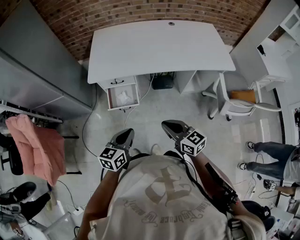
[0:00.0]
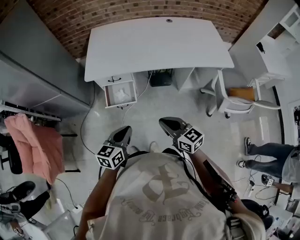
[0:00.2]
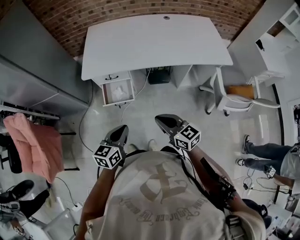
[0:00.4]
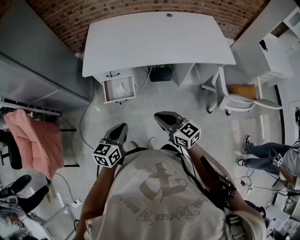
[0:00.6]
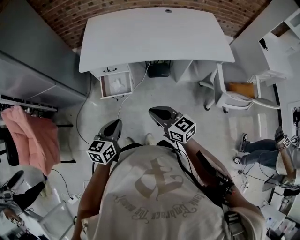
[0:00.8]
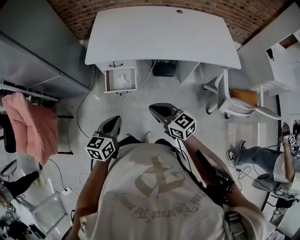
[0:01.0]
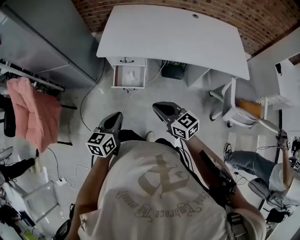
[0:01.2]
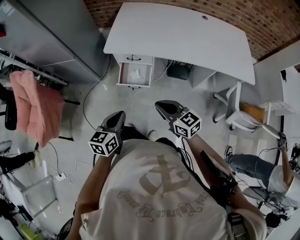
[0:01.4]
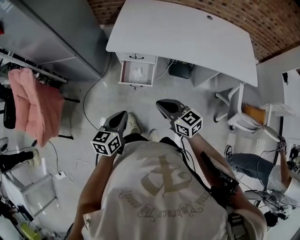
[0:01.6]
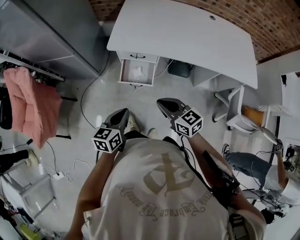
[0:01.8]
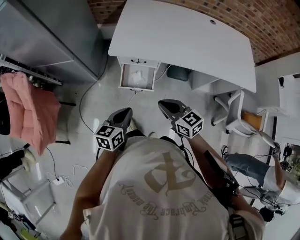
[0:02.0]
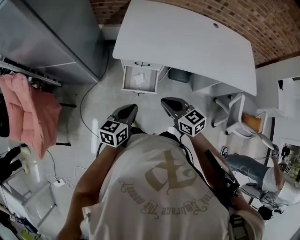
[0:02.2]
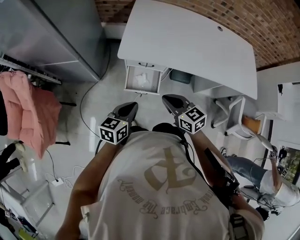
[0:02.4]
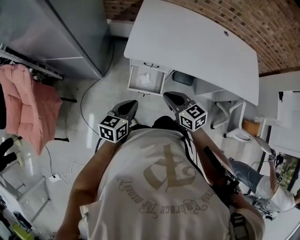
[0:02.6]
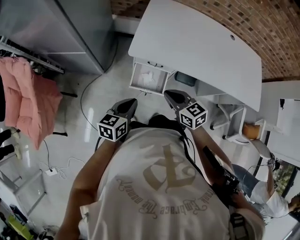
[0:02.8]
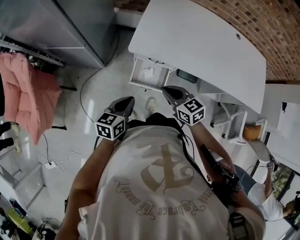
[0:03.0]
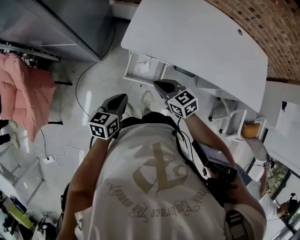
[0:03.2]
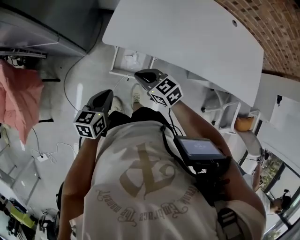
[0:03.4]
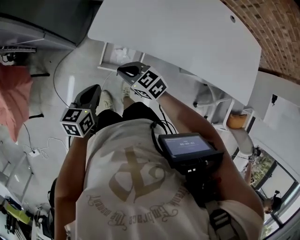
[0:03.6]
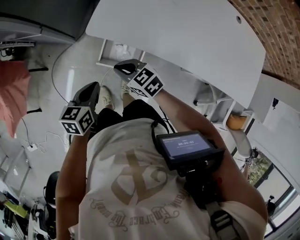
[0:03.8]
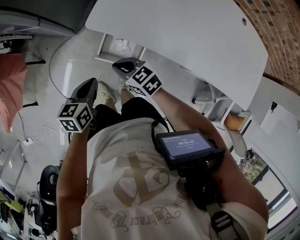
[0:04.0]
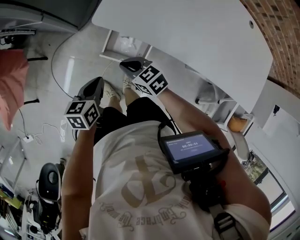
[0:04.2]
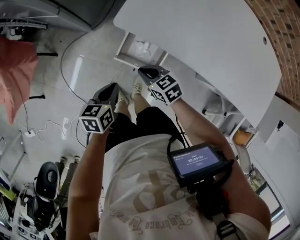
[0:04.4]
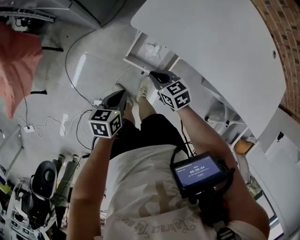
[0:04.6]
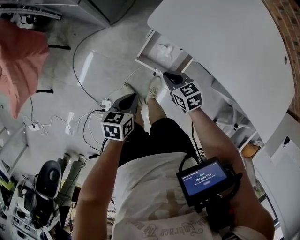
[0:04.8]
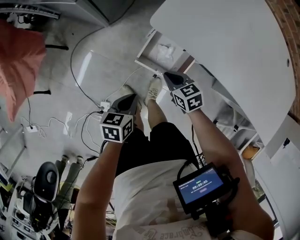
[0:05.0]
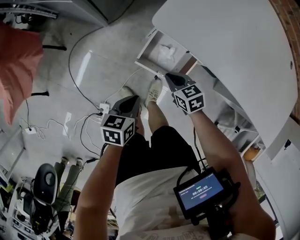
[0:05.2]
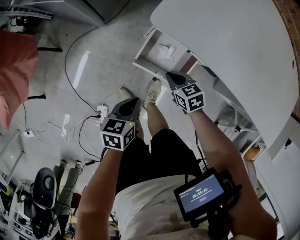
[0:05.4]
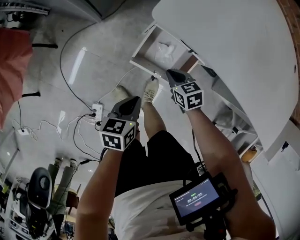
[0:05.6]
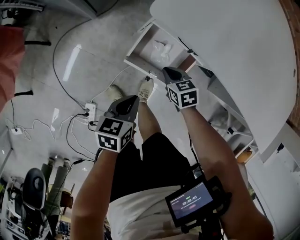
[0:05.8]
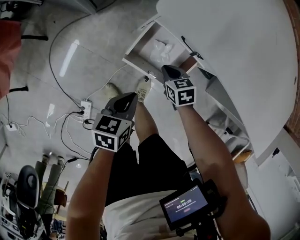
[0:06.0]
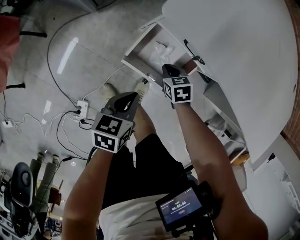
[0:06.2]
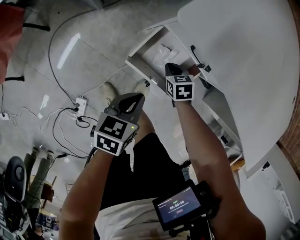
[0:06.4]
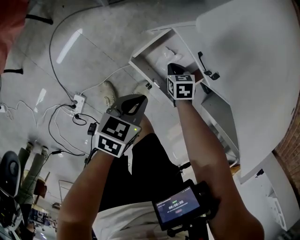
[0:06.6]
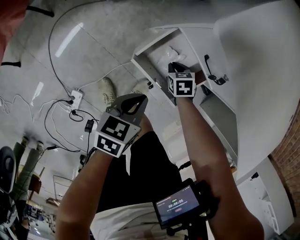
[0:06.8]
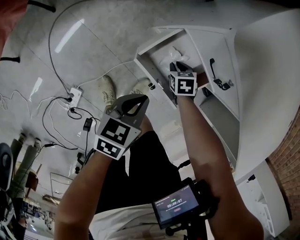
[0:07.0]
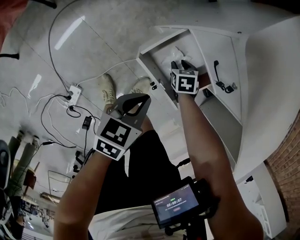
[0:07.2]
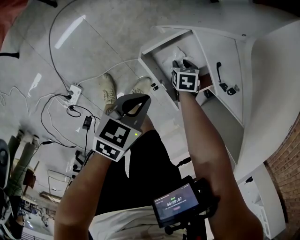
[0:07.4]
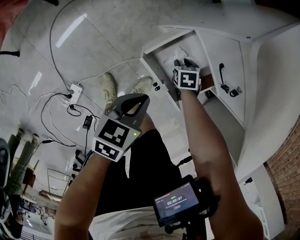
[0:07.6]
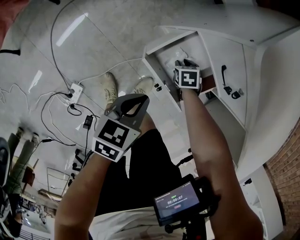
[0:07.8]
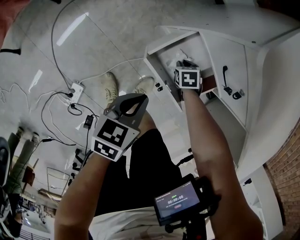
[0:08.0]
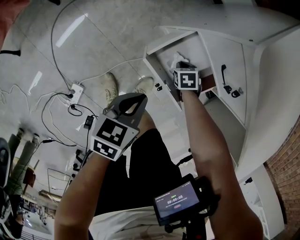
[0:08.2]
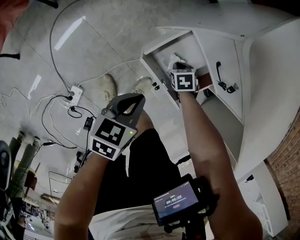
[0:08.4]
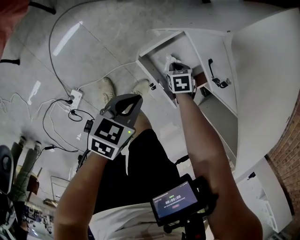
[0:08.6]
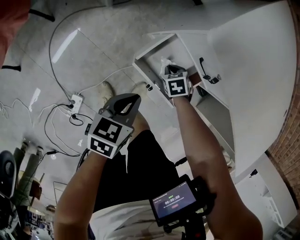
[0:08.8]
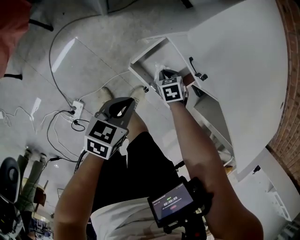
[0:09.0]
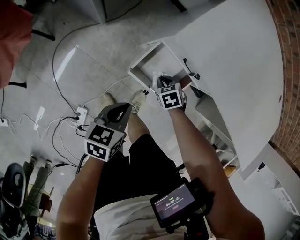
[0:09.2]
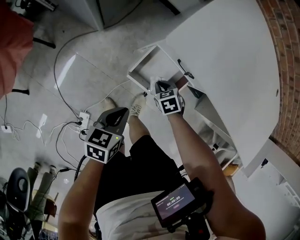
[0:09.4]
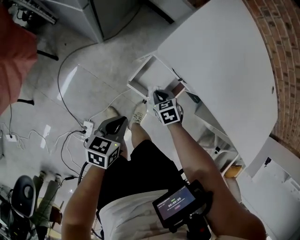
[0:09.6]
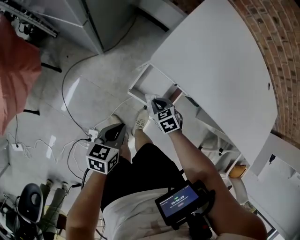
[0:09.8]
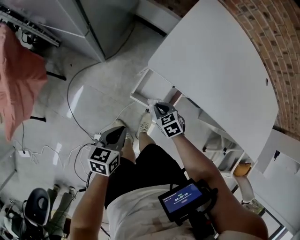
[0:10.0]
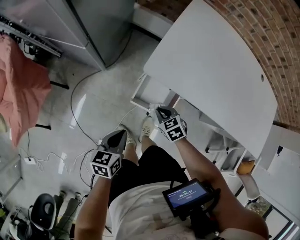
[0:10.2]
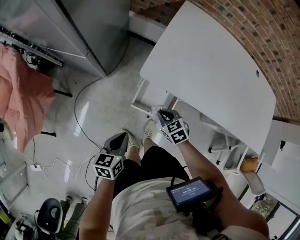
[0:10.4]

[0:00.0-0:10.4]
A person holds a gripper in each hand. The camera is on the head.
0:00.0 to 0:01.4: Both grippers travel together to the left, some 5 cm.
0:01.4 to 0:03.0: Both grippers move forward and to the left, roughly 25 cm.
0:03.0 to 0:04.4: Both grippers move downward, some 15 cm. The right gripper rotates roughly 20 degrees, while the left gripper turns by about 30 degrees.
0:04.4 to 0:06.0: Both grippers travel together downward, about 20 cm. The right gripper changes its angle by approximately 20 degrees.
0:06.0 to 0:07.4: The right gripper is displaced downward by roughly 15 cm, and opens up.
0:07.4 to 0:09.0: The right gripper shifts about 10 cm upward, and closes; the left gripper shifts some 5 cm upward.
0:09.0 to 0:10.4: The left gripper heads upward, covering approximately 15 cm. The right gripper moves upward, approximately 25 cm, and turns by roughly 20 degrees.

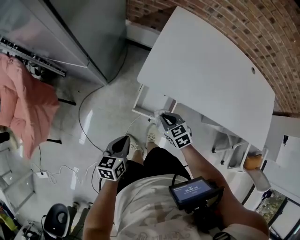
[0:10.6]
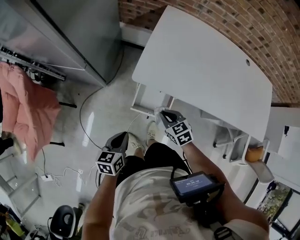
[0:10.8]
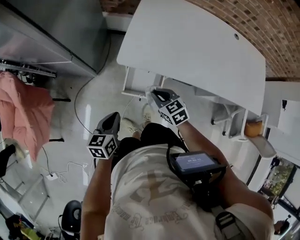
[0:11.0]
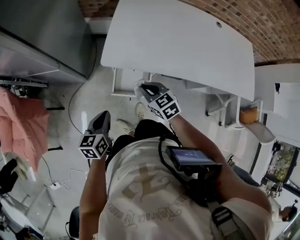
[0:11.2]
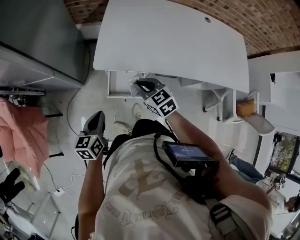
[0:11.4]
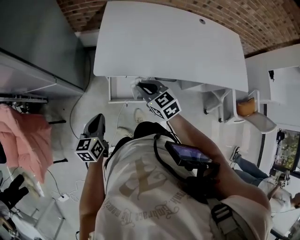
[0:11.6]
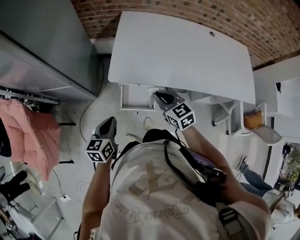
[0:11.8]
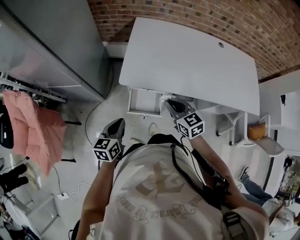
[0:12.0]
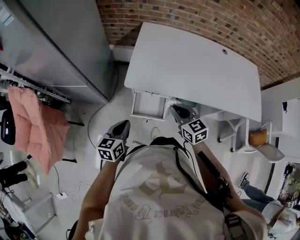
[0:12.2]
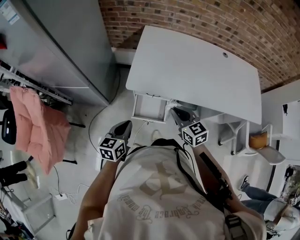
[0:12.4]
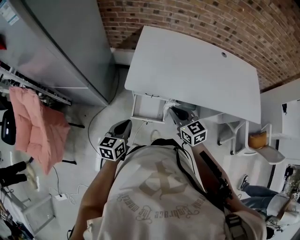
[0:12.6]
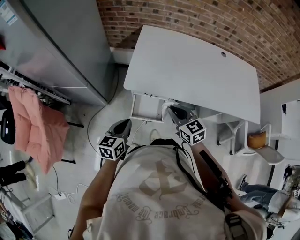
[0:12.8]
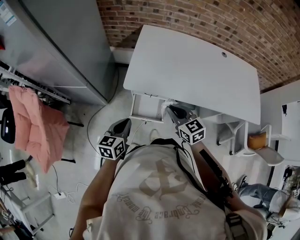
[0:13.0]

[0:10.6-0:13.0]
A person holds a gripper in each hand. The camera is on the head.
0:10.6 to 0:11.8: The right gripper goes some 20 cm upward and to the right, and changes its angle by about 30 degrees. Meanwhile the left gripper moves upward, some 10 cm.
0:11.8 to 0:13.0: The grippers make only small movements.

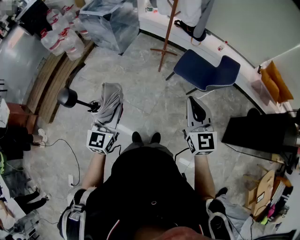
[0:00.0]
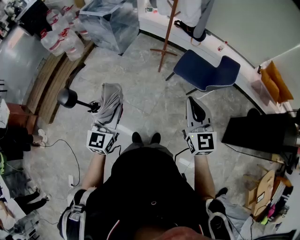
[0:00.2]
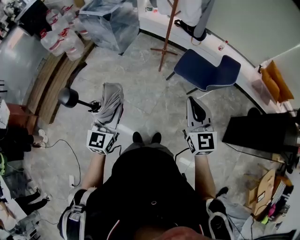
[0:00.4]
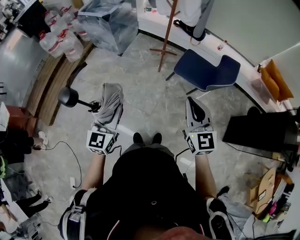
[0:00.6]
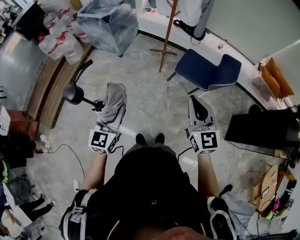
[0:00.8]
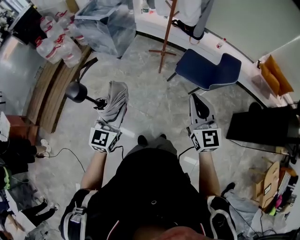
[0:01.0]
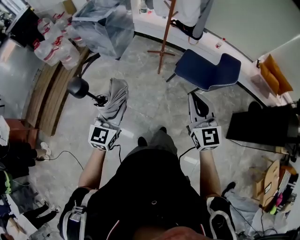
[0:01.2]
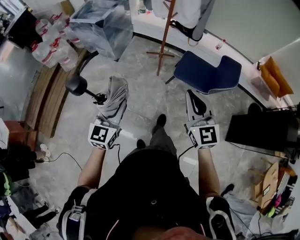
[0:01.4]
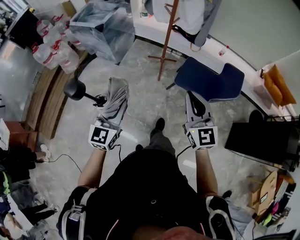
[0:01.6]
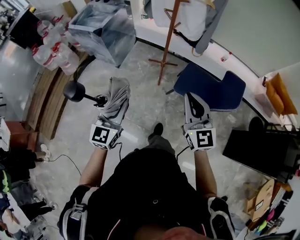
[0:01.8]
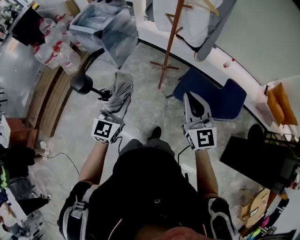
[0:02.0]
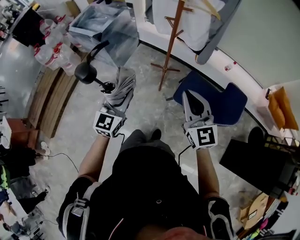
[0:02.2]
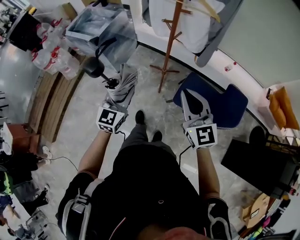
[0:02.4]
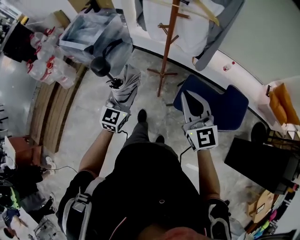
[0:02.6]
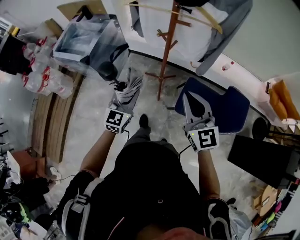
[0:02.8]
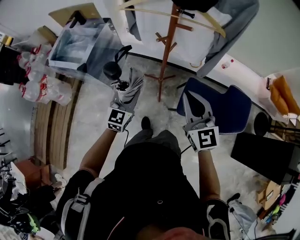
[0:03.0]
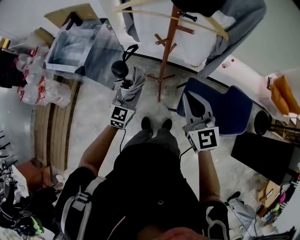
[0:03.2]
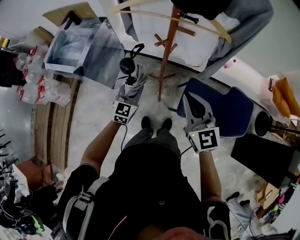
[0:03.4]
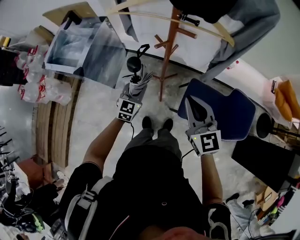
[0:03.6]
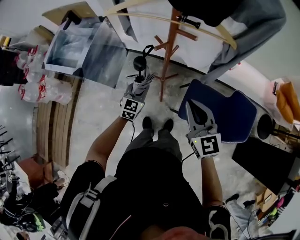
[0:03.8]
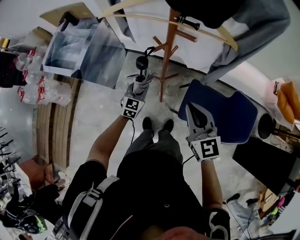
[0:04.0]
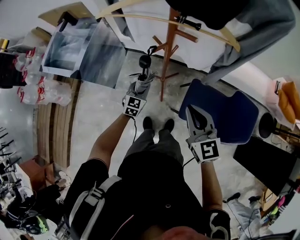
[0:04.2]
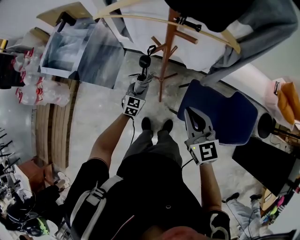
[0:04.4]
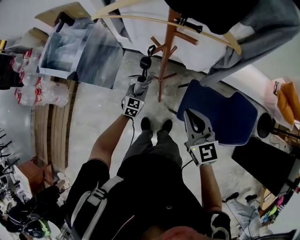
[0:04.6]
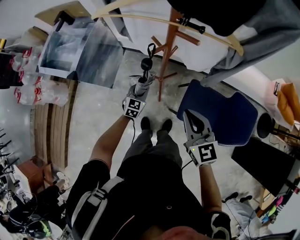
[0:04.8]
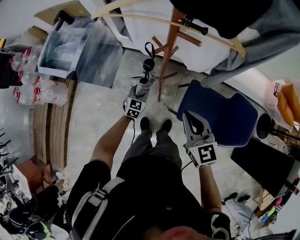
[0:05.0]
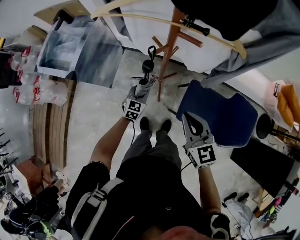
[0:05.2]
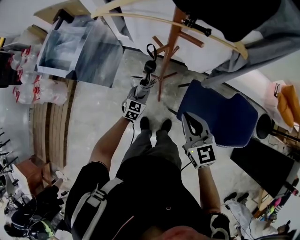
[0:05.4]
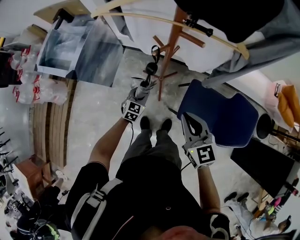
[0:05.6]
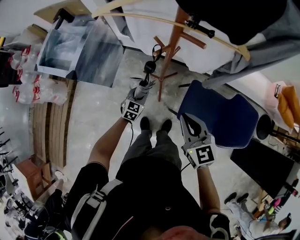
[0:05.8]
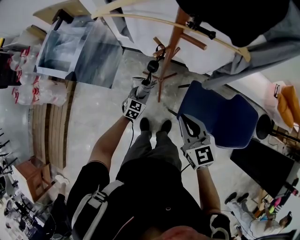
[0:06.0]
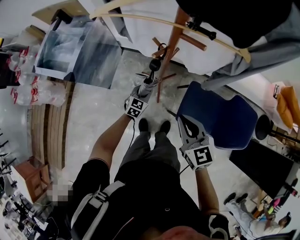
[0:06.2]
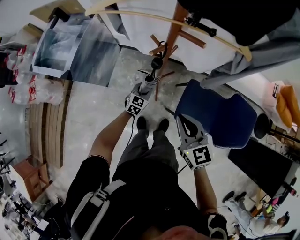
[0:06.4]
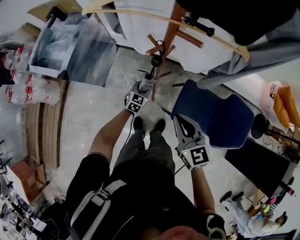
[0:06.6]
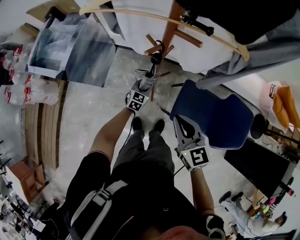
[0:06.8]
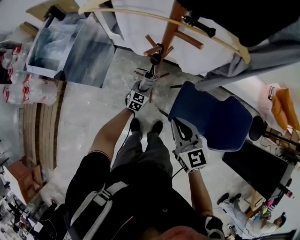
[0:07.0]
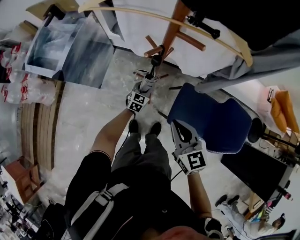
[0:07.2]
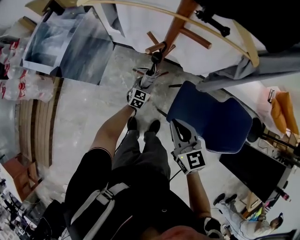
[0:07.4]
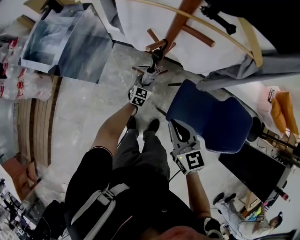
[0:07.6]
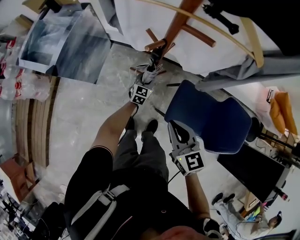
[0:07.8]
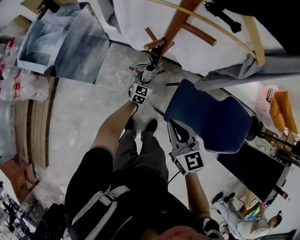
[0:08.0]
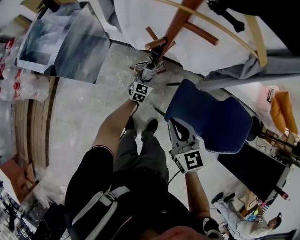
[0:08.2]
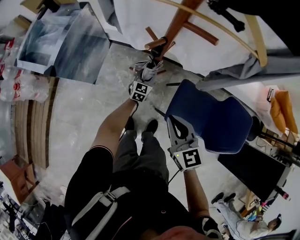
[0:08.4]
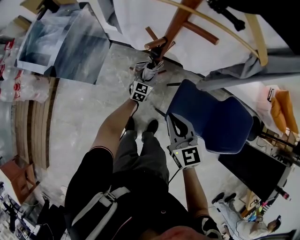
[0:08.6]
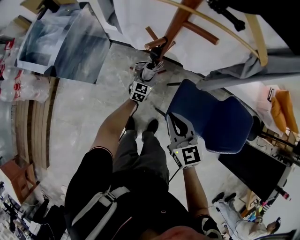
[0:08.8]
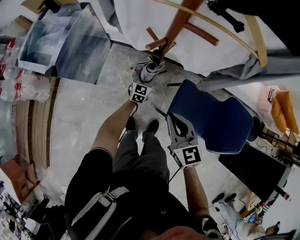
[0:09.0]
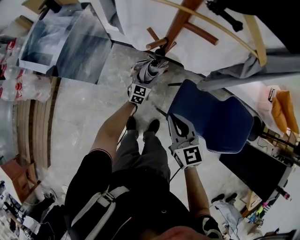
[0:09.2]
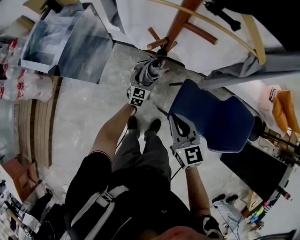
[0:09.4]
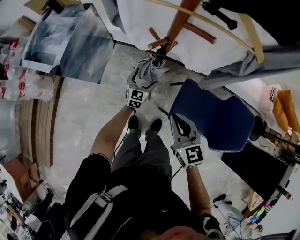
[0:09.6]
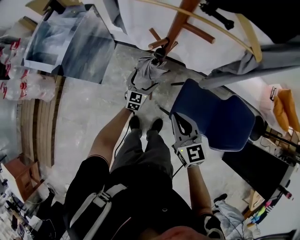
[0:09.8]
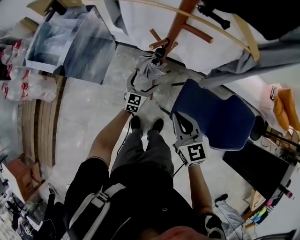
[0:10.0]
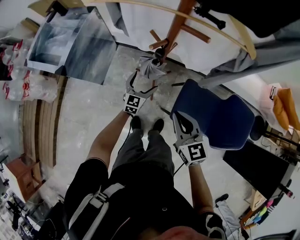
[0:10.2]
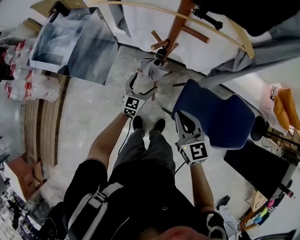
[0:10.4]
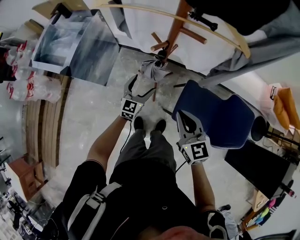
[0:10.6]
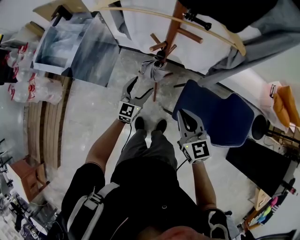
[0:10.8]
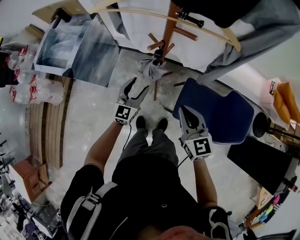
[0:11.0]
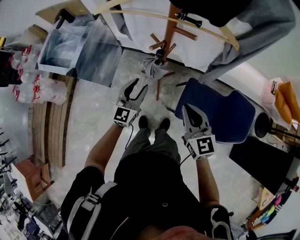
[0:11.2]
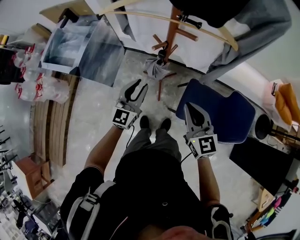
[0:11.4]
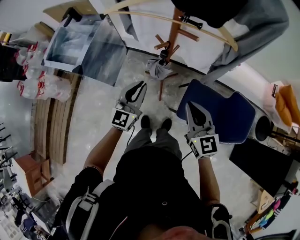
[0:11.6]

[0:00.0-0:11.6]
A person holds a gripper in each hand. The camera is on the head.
0:00.0 to 0:01.4: The right gripper goes approximately 10 cm forward and to the left. The left gripper is displaced forward by roughly 10 cm.
0:01.4 to 0:02.8: The grippers both shift forward by approximately 40 cm.
0:02.8 to 0:04.4: The left gripper goes some 30 cm downward and forward. Meanwhile the right gripper travels downward and forward by some 15 cm.
0:04.4 to 0:05.8: The left gripper changes place by roughly 5 cm.
0:05.8 to 0:07.2: The left gripper heads to the right, downward and forward, covering about 10 cm.
0:07.2 to 0:08.8: The left gripper is displaced forward by about 5 cm.
0:08.8 to 0:10.2: The left gripper travels upward, backward and to the left by approximately 10 cm, and opens its fingers.
0:10.2 to 0:11.6: The left gripper is displaced upward by about 25 cm, and closes up; the right gripper travels upward by some 10 cm.
